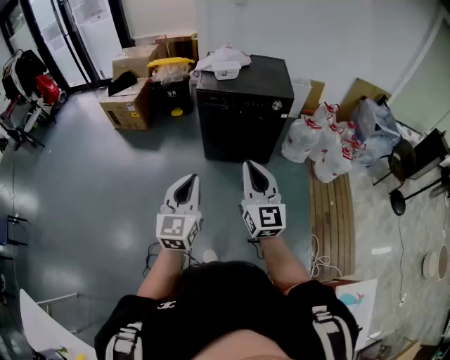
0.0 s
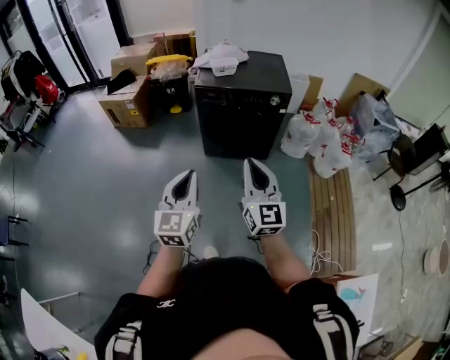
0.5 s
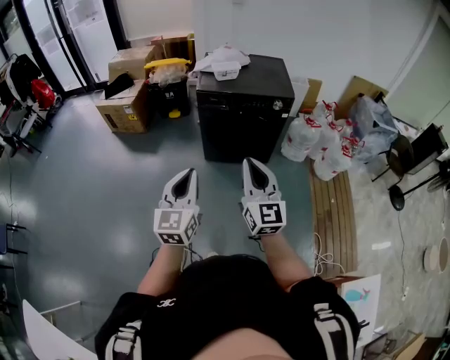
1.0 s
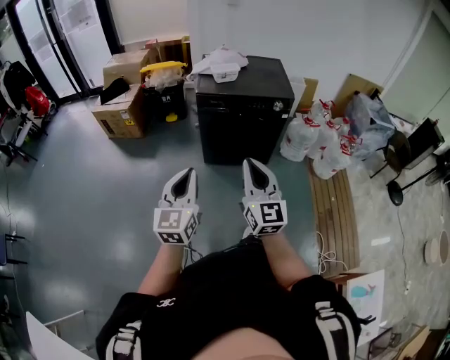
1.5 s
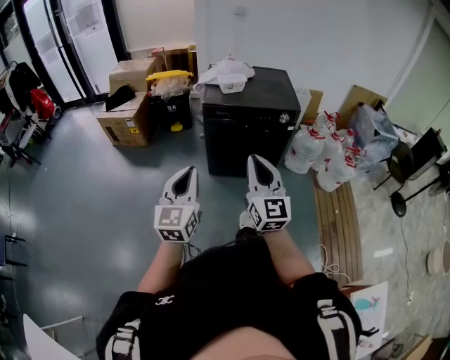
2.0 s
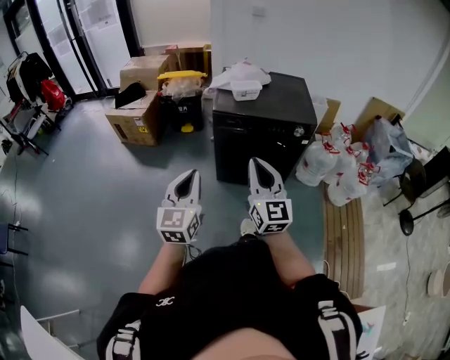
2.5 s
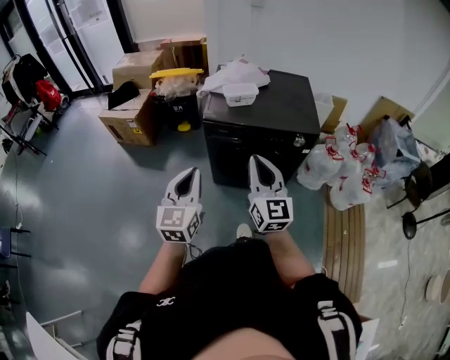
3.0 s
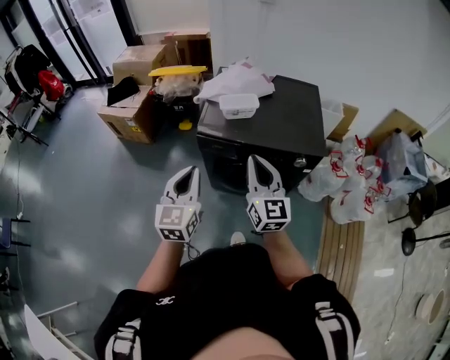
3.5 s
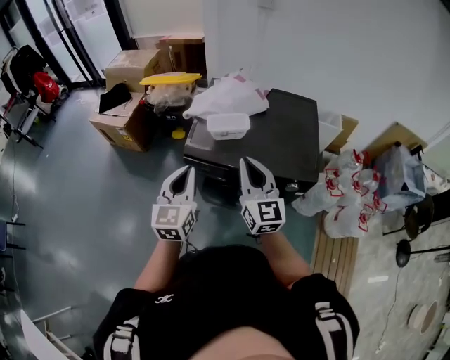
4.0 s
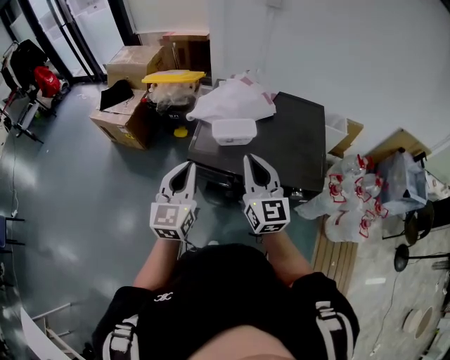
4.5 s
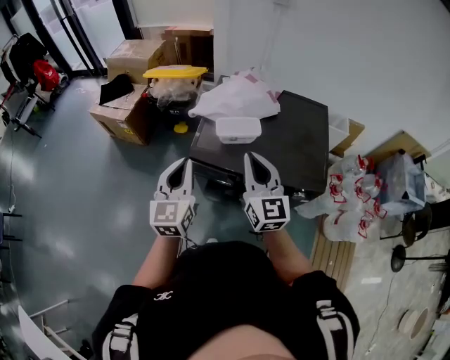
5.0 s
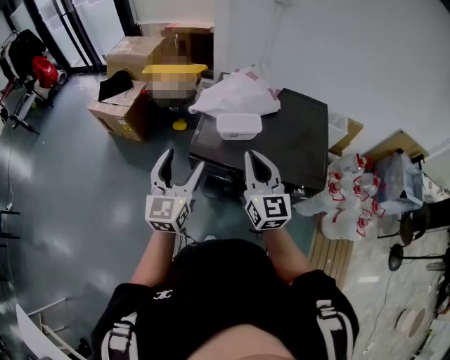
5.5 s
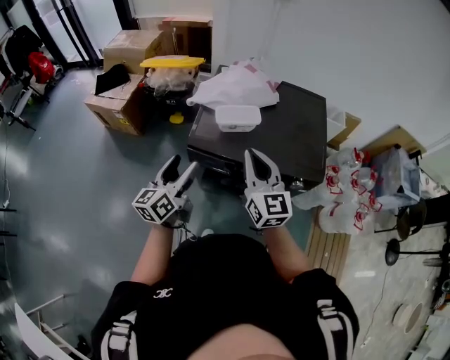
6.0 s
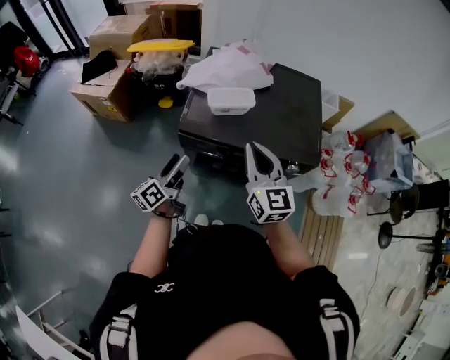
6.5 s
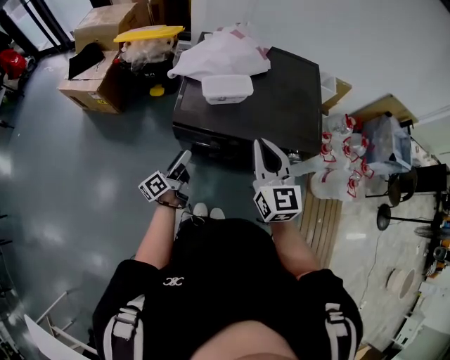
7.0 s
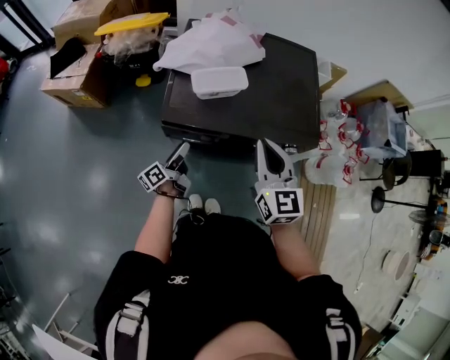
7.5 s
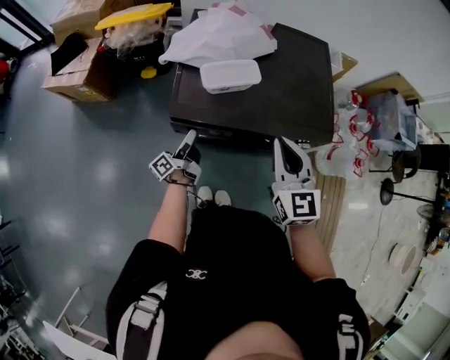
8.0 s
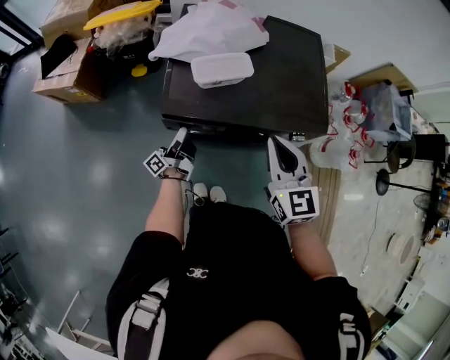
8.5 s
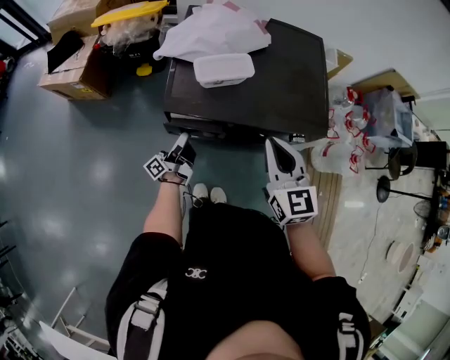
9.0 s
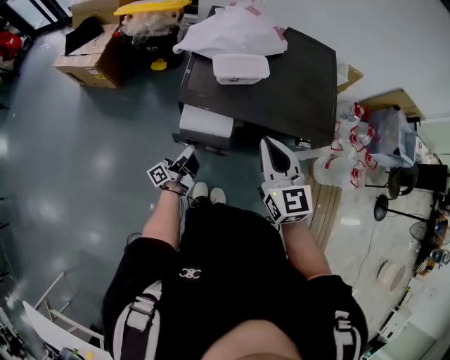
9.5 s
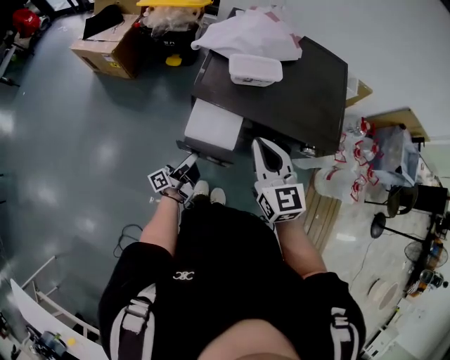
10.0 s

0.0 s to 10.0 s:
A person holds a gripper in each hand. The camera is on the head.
0.0 to 2.0 s: The grippers both shift forward and to the left by some 10 cm.
2.0 to 4.0 s: Both grippers are carried forward, approximately 50 cm.
4.0 to 6.0 s: The left gripper travels downward and to the left by about 10 cm, turns by approximately 30 degrees, and opens its fingers.
6.0 to 8.0 s: The right gripper is displaced downward and to the right by about 10 cm, and turns by some 20 degrees. The left gripper goes approximately 25 cm downward and forward, and twists roughly 50 degrees counterclockwise, seen from behind.
8.0 to 10.0 s: The right gripper is displaced to the left and backward by some 10 cm, while the left gripper goes approximately 15 cm backward.

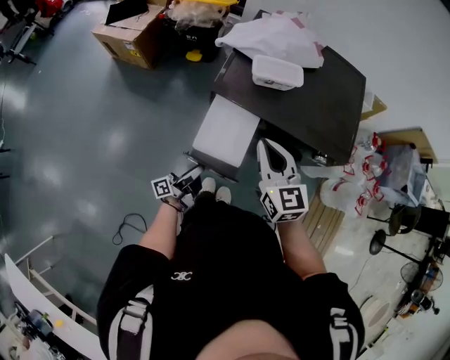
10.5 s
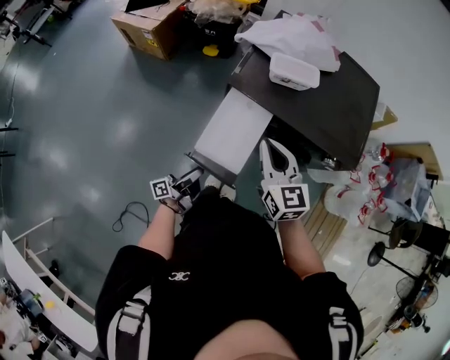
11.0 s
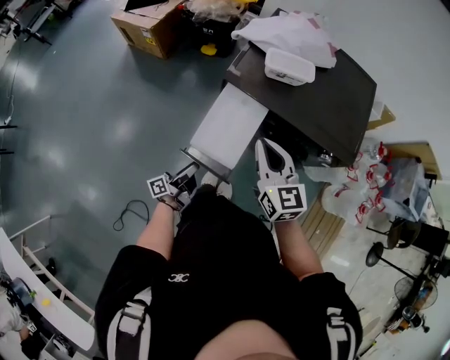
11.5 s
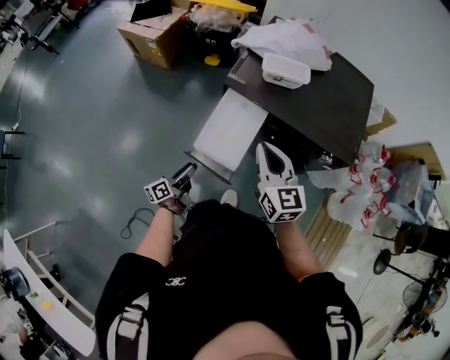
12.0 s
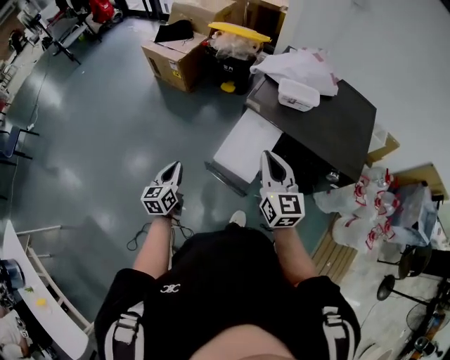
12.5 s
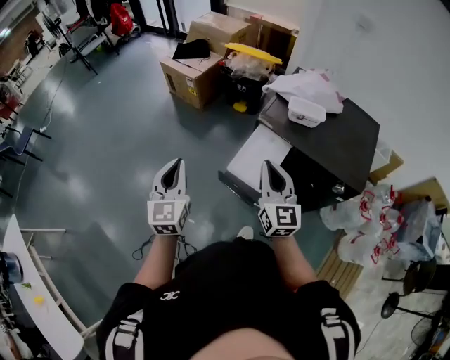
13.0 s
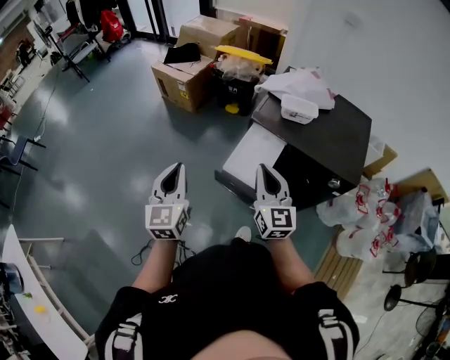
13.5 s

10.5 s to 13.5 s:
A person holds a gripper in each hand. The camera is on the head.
10.5 to 12.0 s: The right gripper shifts roughly 5 cm backward. The left gripper shifts approximately 10 cm backward and to the left, and rotates about 30 degrees.
12.0 to 13.5 s: The left gripper goes about 35 cm upward, rotates around the line of its fingers by approximately 60 degrees, clockwise from behind, and closes up. The right gripper moves to the left, upward and backward, roughly 15 cm.

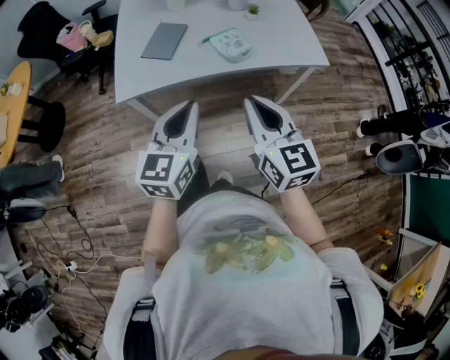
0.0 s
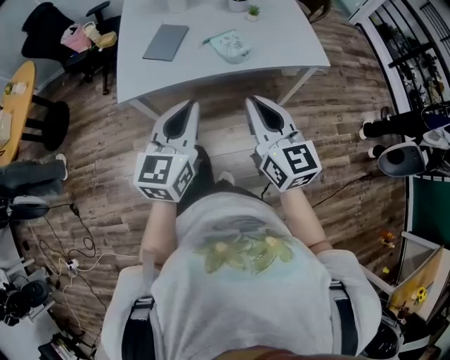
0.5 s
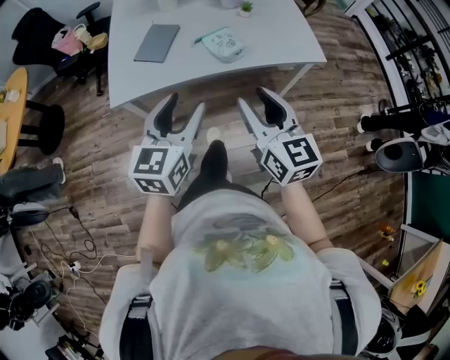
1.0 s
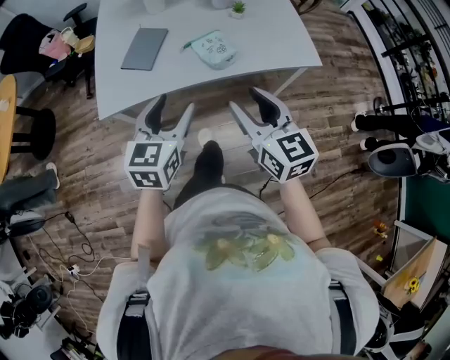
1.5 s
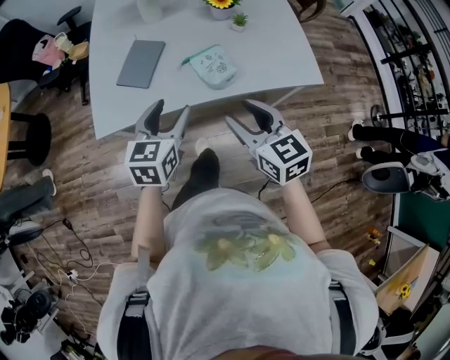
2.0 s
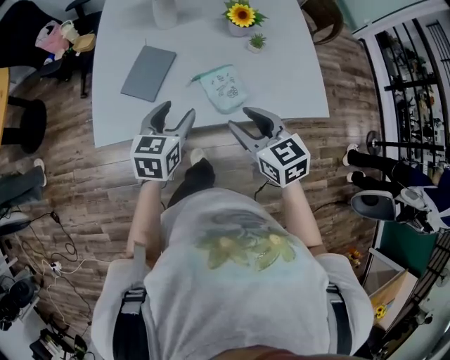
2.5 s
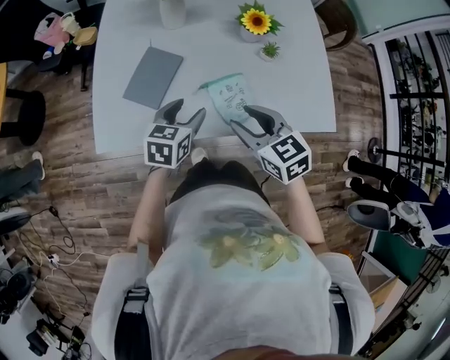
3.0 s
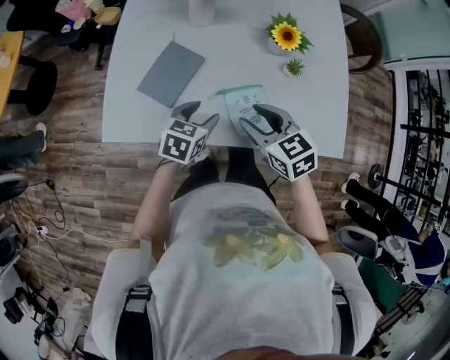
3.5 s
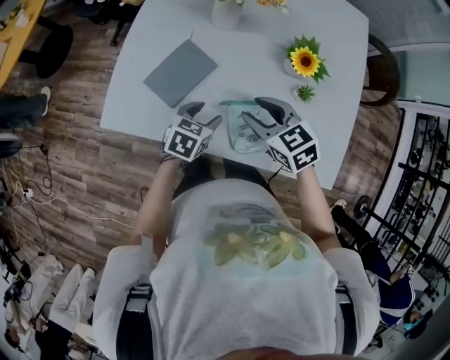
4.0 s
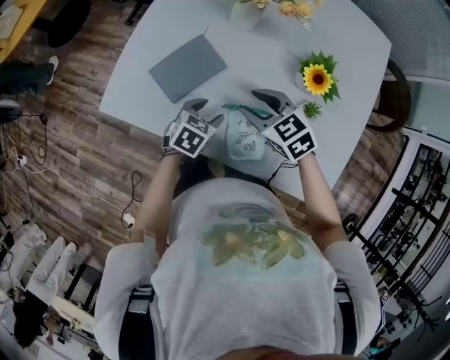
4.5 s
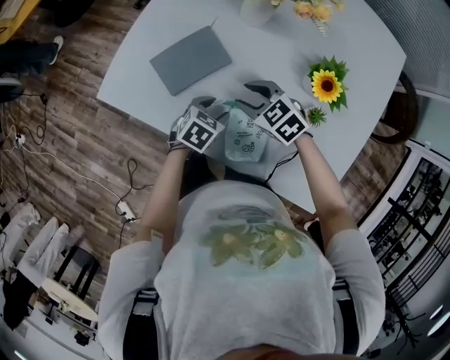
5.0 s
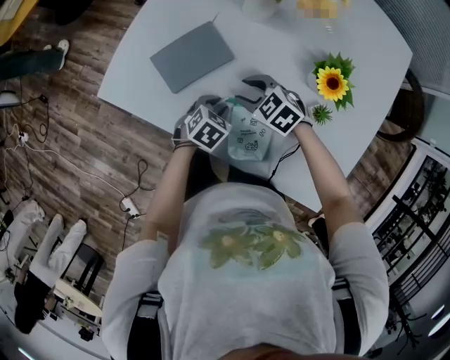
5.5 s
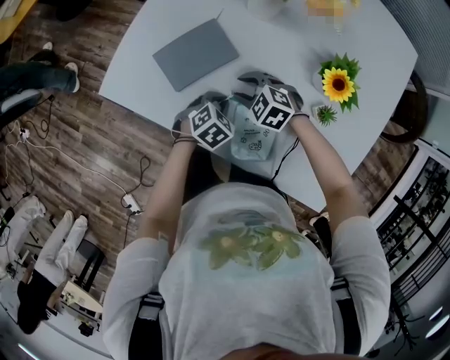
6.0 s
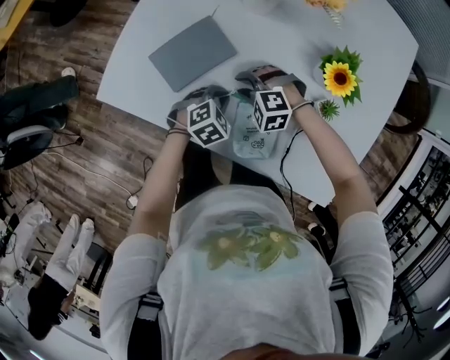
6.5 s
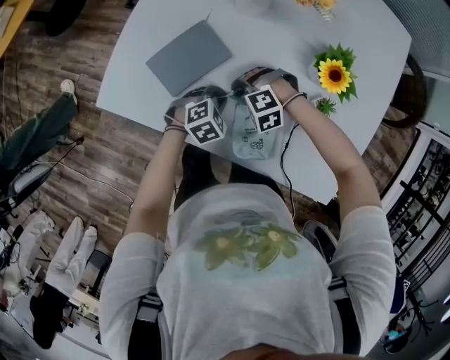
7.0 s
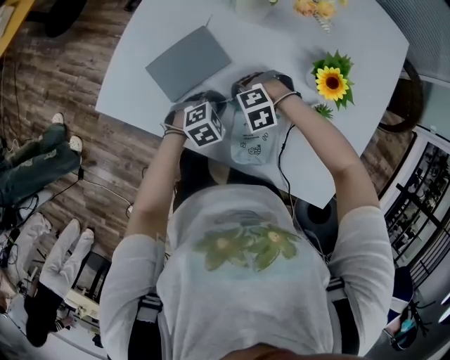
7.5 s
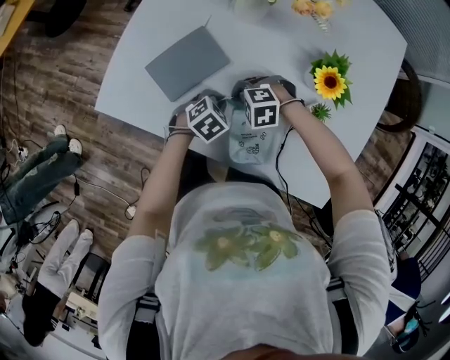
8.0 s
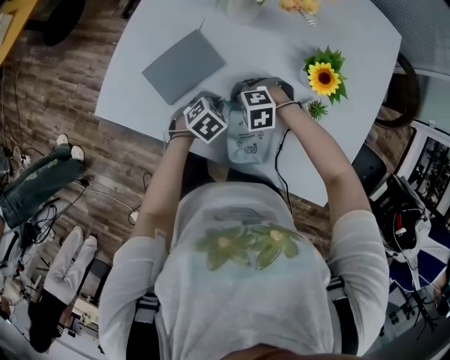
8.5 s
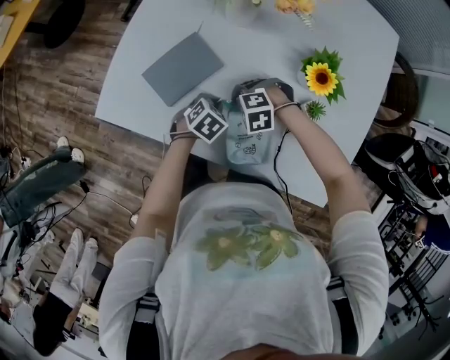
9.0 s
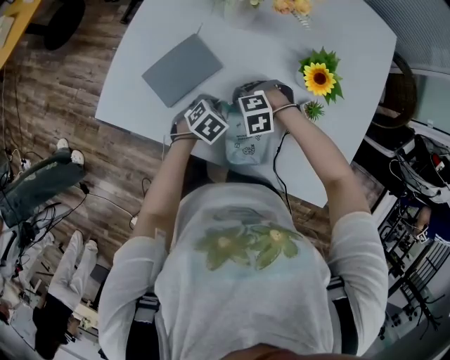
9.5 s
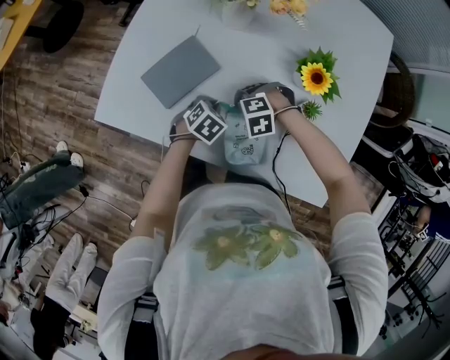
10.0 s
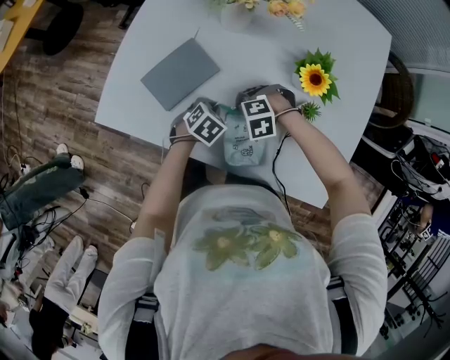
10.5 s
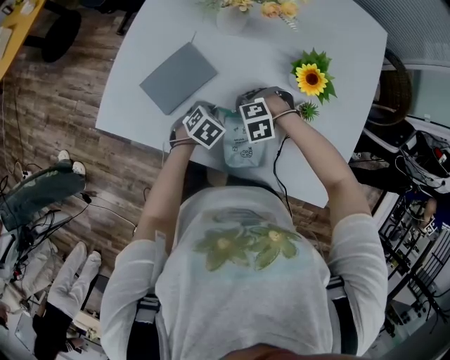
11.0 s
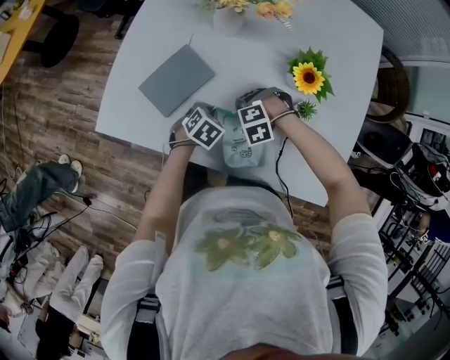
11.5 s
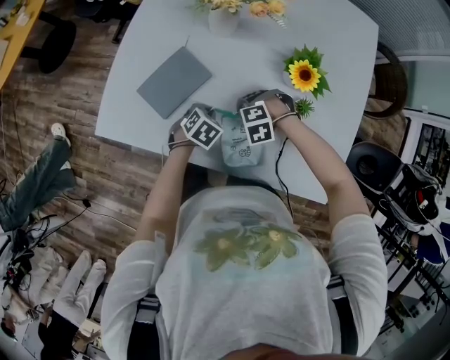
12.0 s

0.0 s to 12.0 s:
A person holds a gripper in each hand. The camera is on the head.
0.0 to 2.0 s: The left gripper is displaced forward by some 20 cm, and opens up. The right gripper goes approximately 15 cm forward and downward, and opens.
2.0 to 4.0 s: The right gripper moves forward, approximately 30 cm, and turns by roughly 40 degrees, while the left gripper heads forward and downward, covering about 25 cm, and swivels roughly 20 degrees.
4.0 to 6.0 s: The left gripper moves downward, about 10 cm, swivels about 20 degrees, and closes its fingers; the right gripper travels downward by approximately 15 cm, and swivels some 50 degrees.
6.0 to 8.0 s: The right gripper swivels some 30 degrees, and closes its fingers.
8.0 to 12.0 s: The grippers stay close to where they were, moving slightly.

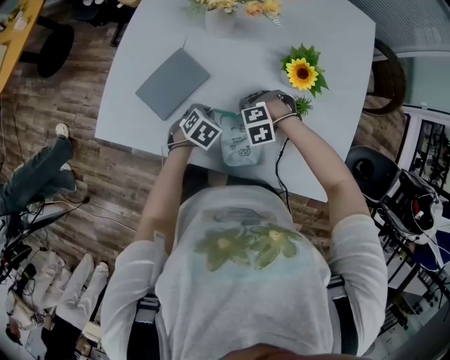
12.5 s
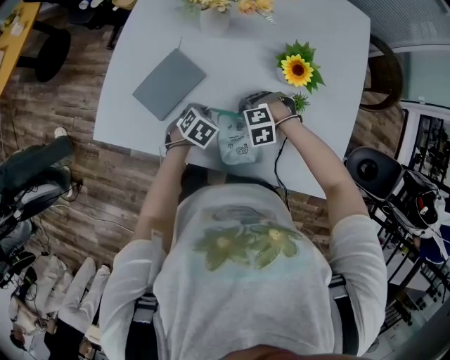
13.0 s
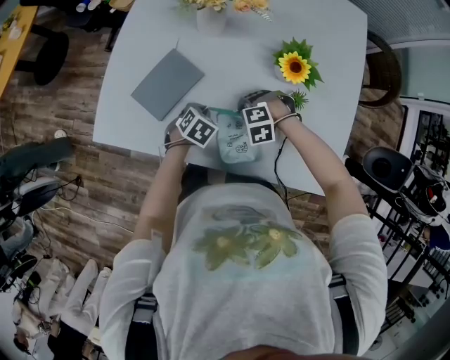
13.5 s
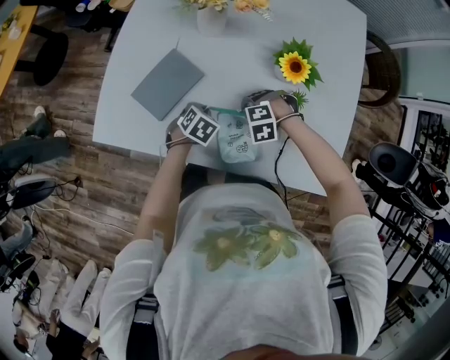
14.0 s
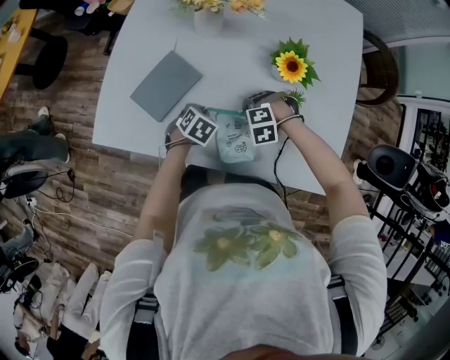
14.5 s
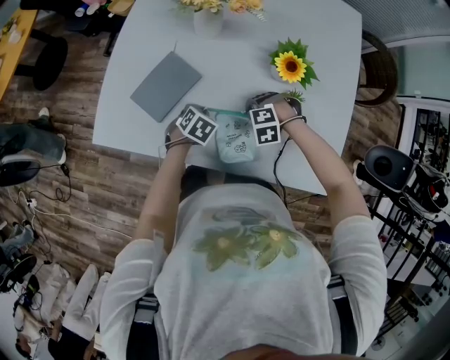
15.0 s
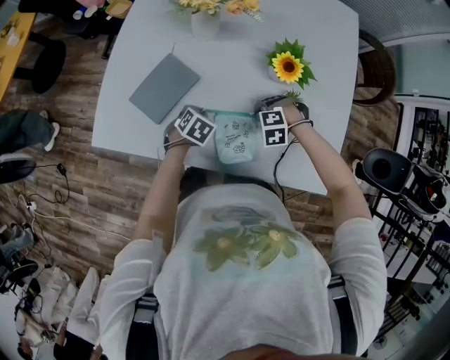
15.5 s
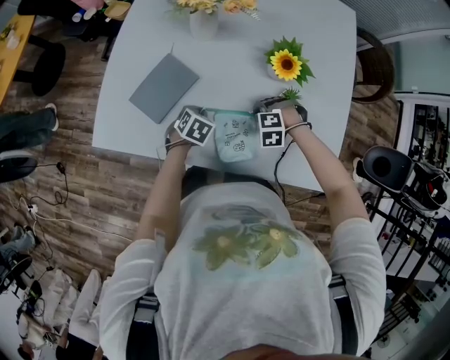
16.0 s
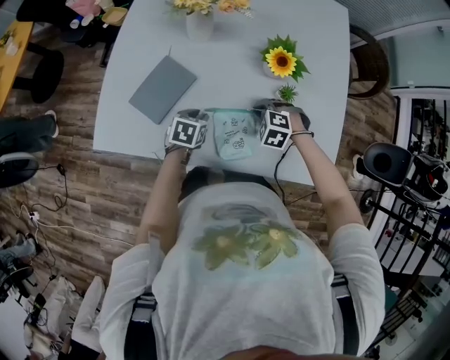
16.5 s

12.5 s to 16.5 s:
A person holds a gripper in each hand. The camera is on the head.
12.5 to 14.5 s: The grippers make only small movements.
14.5 to 16.5 s: The right gripper moves some 5 cm, and swivels approximately 30 degrees.
